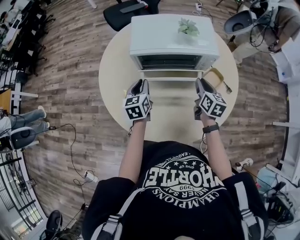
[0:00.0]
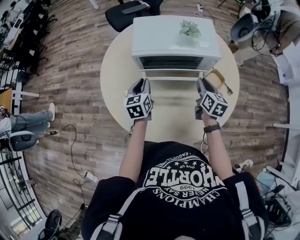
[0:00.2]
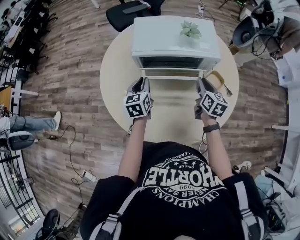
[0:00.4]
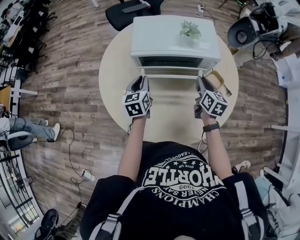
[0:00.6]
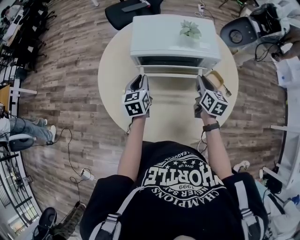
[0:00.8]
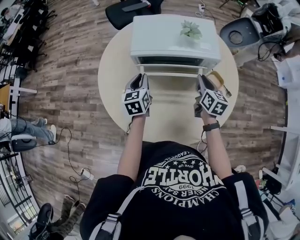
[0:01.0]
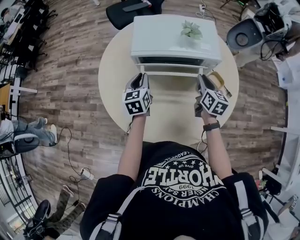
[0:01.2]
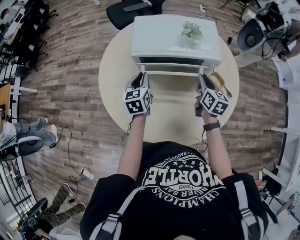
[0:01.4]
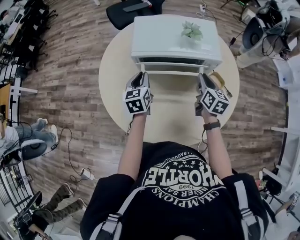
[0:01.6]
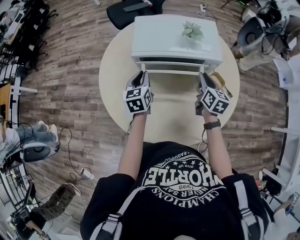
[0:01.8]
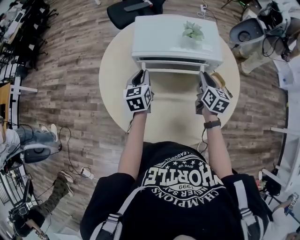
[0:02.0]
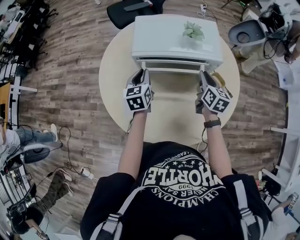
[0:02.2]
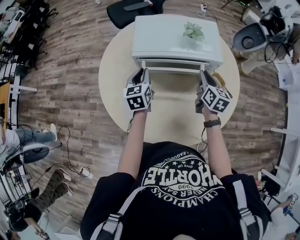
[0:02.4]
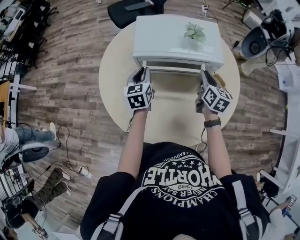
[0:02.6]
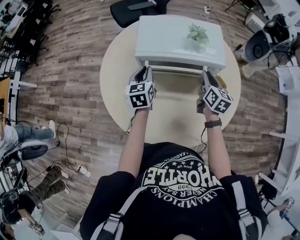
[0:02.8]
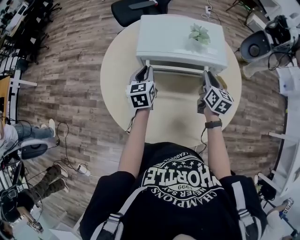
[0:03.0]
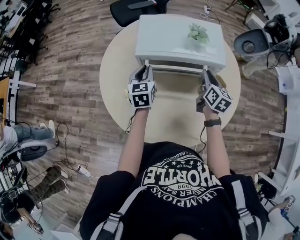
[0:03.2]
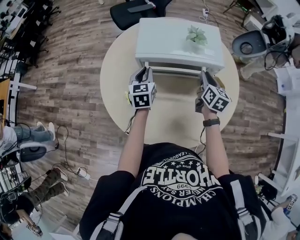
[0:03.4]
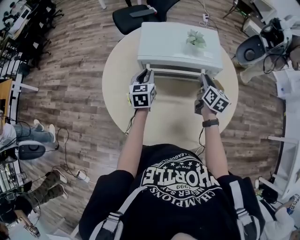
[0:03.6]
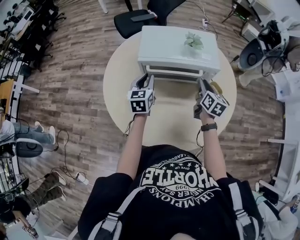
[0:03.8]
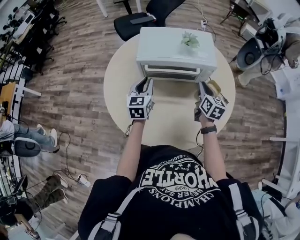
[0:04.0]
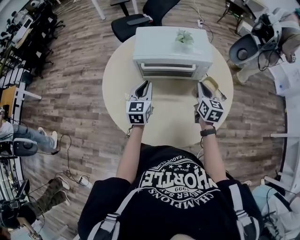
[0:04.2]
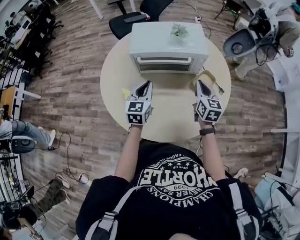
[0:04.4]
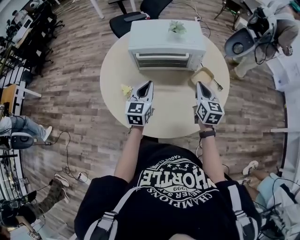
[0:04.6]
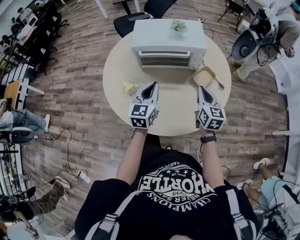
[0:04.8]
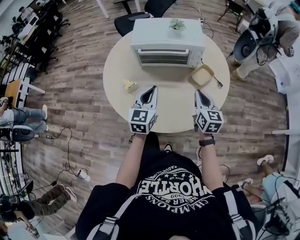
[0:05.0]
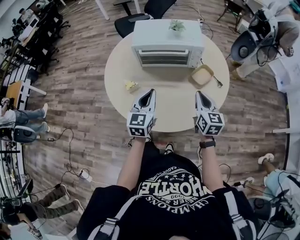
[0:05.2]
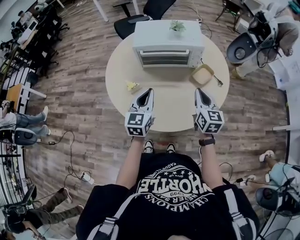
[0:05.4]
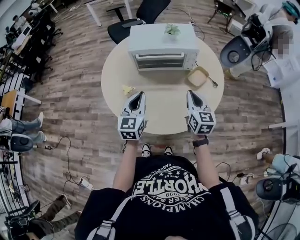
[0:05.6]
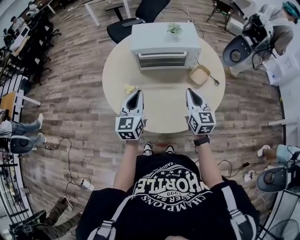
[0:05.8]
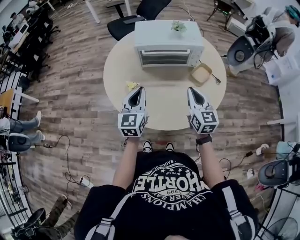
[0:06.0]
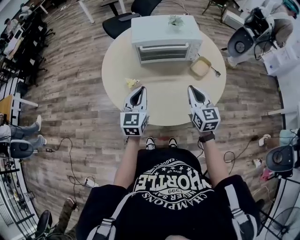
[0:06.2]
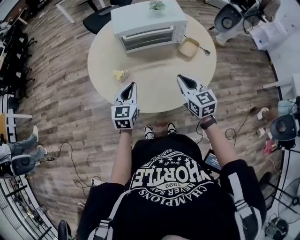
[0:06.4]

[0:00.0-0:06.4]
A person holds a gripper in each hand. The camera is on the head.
0:00.0 to 0:01.6: The grippers make only small movements.
0:01.6 to 0:03.2: There are only small adjustments of the grippers.
0:03.2 to 0:04.8: The left gripper heads backward and to the right, covering about 20 cm. Meanwhile the right gripper goes some 20 cm backward.
0:04.8 to 0:06.4: Both grippers move to the left and backward, roughly 15 cm.

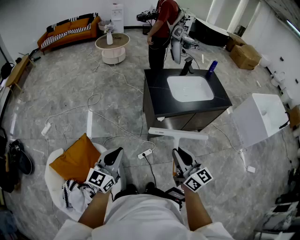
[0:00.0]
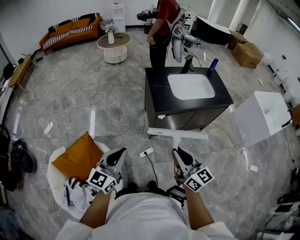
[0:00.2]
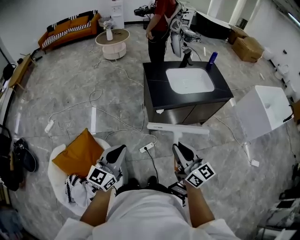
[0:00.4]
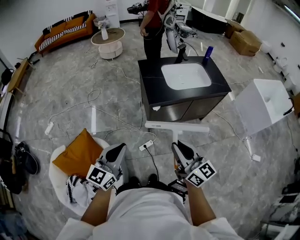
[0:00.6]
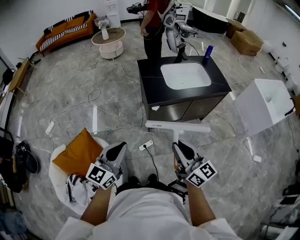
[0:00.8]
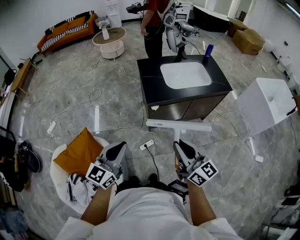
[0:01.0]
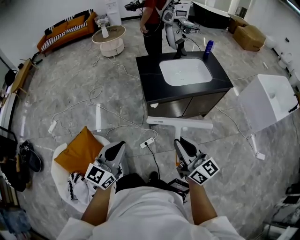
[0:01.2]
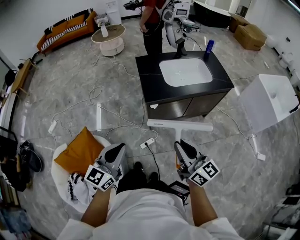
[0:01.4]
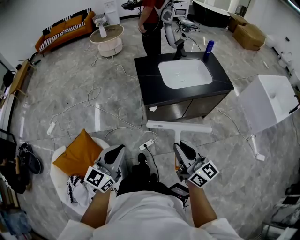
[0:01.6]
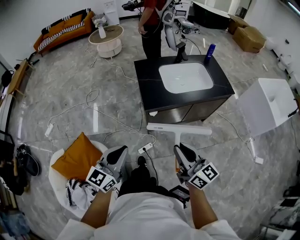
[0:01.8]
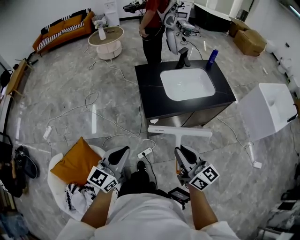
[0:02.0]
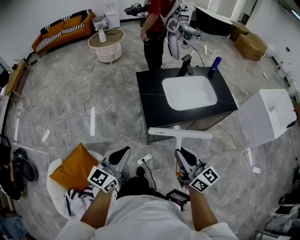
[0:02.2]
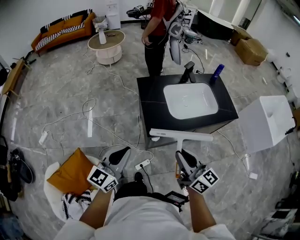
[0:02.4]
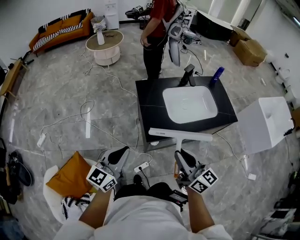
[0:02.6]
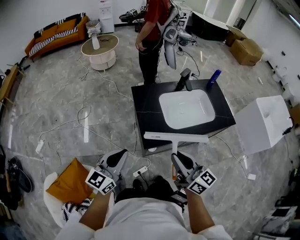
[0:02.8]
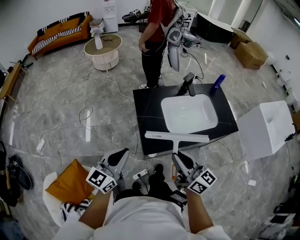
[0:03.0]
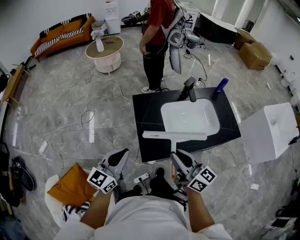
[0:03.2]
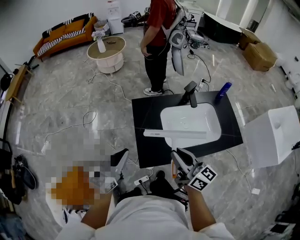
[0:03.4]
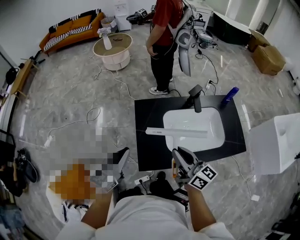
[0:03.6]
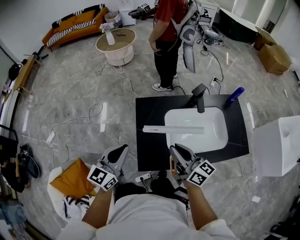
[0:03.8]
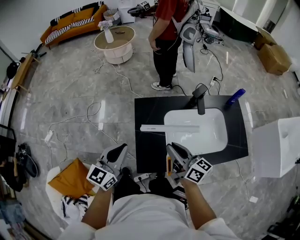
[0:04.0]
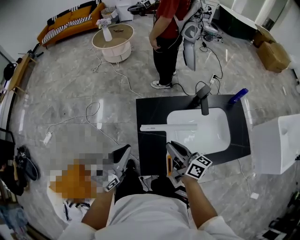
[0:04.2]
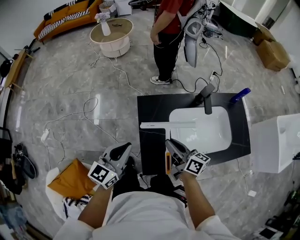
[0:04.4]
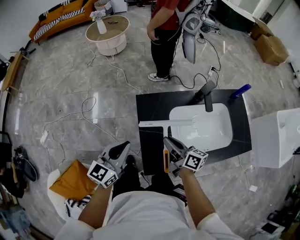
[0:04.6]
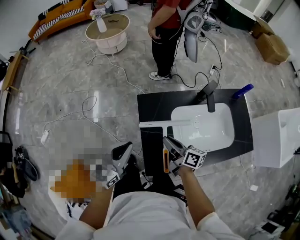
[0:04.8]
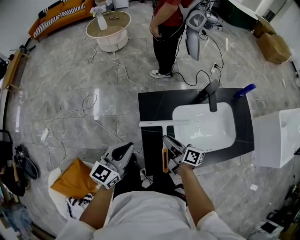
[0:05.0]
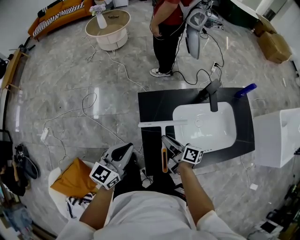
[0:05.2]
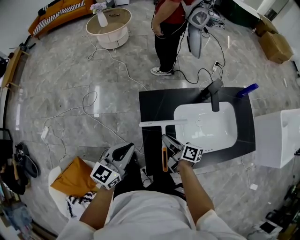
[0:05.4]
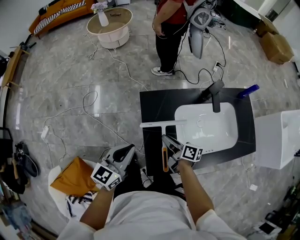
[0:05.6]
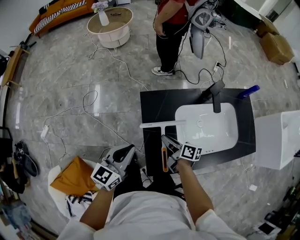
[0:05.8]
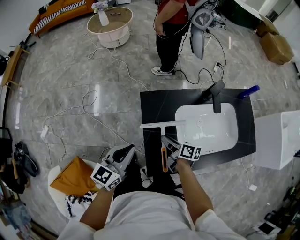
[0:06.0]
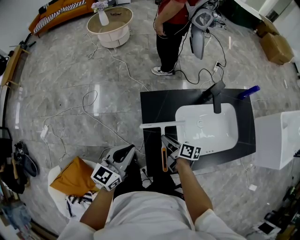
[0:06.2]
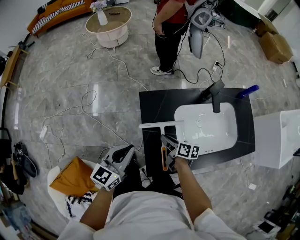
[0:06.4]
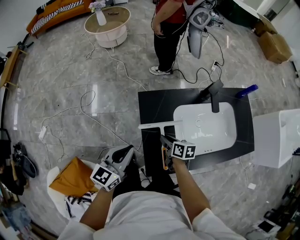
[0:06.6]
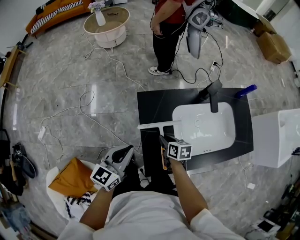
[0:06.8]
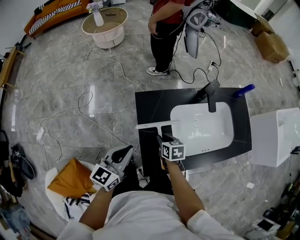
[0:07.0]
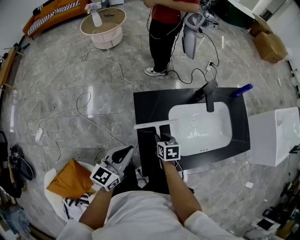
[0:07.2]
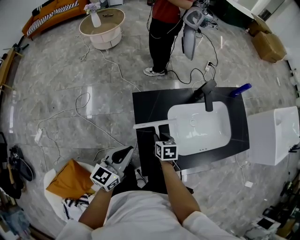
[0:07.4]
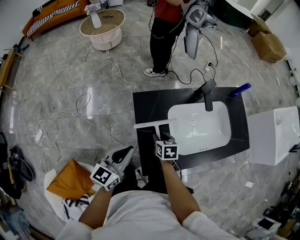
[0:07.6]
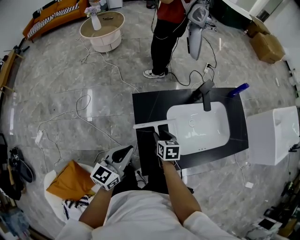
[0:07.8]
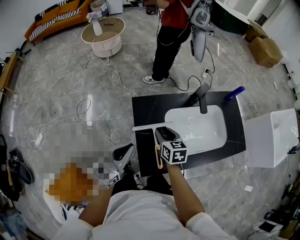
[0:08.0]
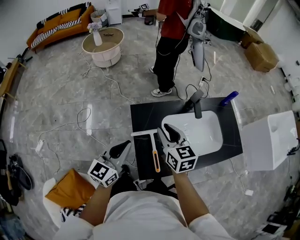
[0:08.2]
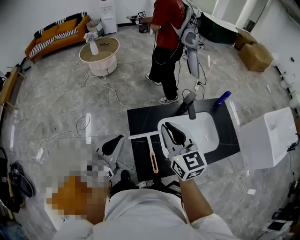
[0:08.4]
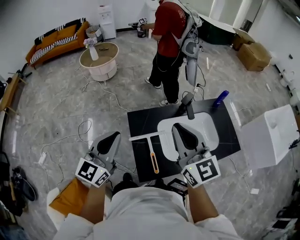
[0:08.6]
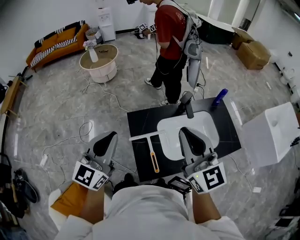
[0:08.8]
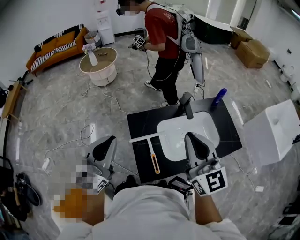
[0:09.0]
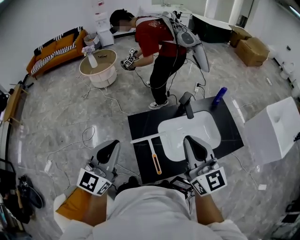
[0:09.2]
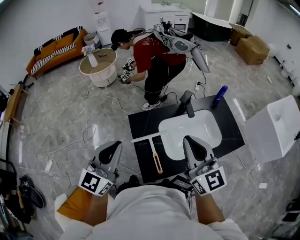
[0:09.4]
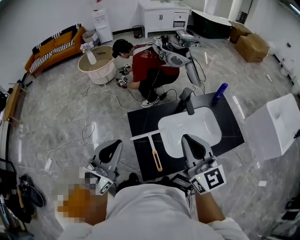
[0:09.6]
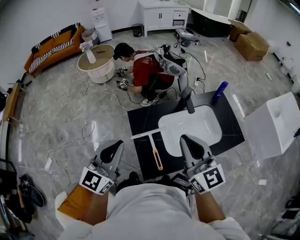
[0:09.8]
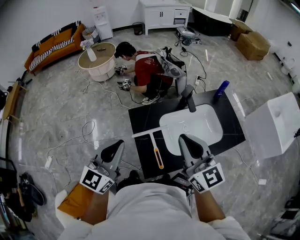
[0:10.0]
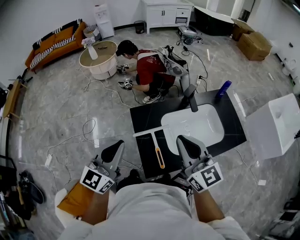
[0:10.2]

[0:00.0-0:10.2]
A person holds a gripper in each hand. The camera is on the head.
0:00.0 to 0:01.4: Both grippers travel together to the right, approximately 10 cm.
0:01.4 to 0:03.0: Both grippers move forward, approximately 30 cm.
0:03.0 to 0:04.4: The right gripper heads forward and downward, covering some 25 cm, and changes its angle by about 30 degrees. Meanwhile the left gripper moves forward, roughly 20 cm.
0:04.4 to 0:05.8: The right gripper goes approximately 15 cm downward, and swivels roughly 20 degrees.
0:05.8 to 0:07.2: The right gripper angles its fingers downward, by roughly 30 degrees.
0:07.2 to 0:08.8: The right gripper moves upward, roughly 40 cm, and angles its fingers upward, by about 60 degrees, while the left gripper heads upward, covering some 25 cm, and swivels roughly 30 degrees.
0:08.8 to 0:10.2: Both grippers move downward, some 5 cm.

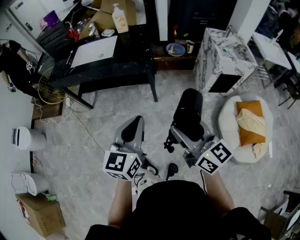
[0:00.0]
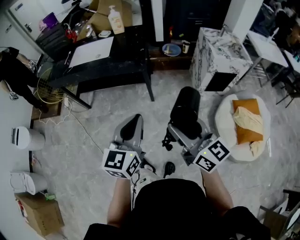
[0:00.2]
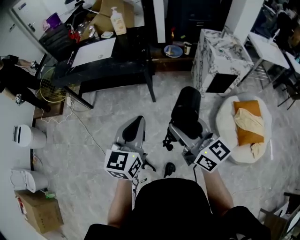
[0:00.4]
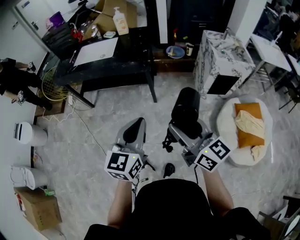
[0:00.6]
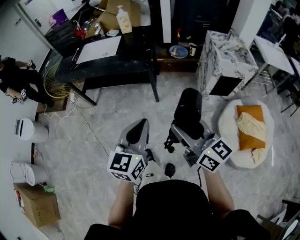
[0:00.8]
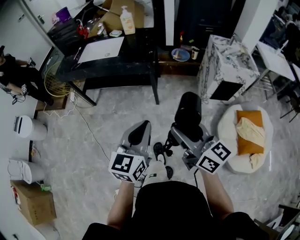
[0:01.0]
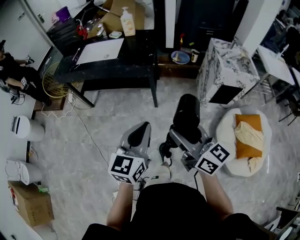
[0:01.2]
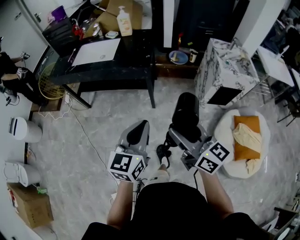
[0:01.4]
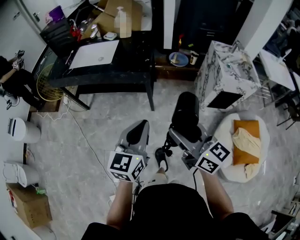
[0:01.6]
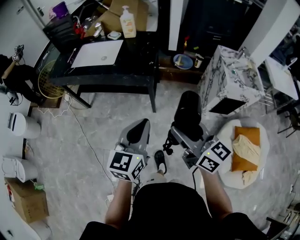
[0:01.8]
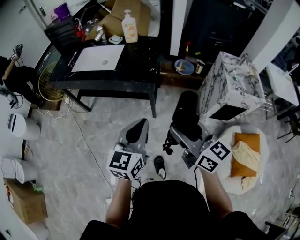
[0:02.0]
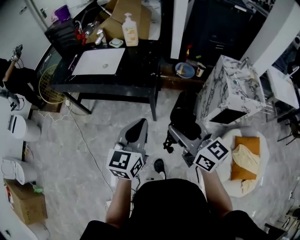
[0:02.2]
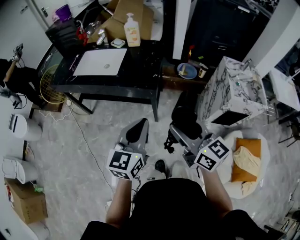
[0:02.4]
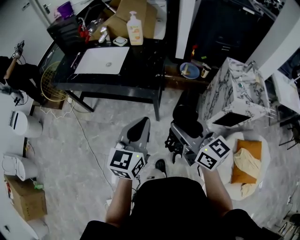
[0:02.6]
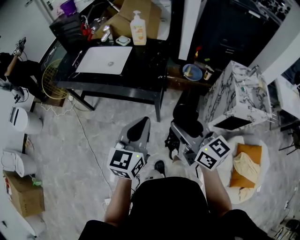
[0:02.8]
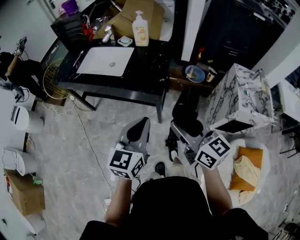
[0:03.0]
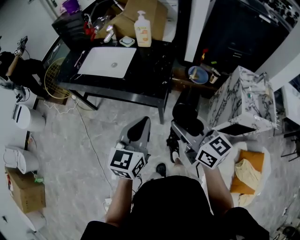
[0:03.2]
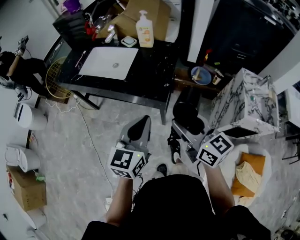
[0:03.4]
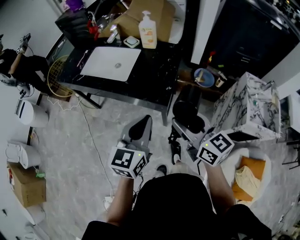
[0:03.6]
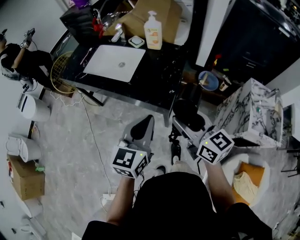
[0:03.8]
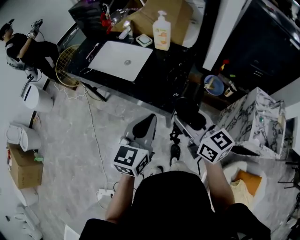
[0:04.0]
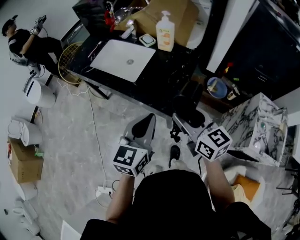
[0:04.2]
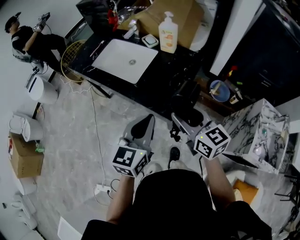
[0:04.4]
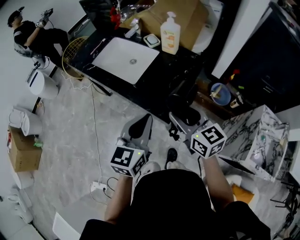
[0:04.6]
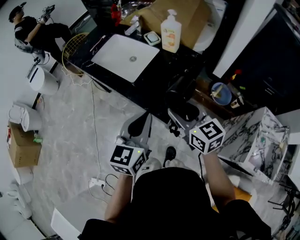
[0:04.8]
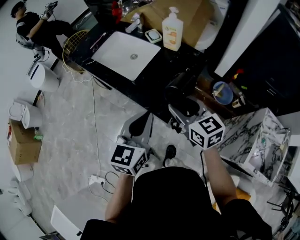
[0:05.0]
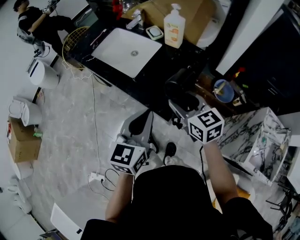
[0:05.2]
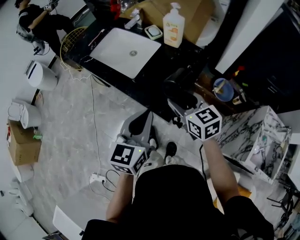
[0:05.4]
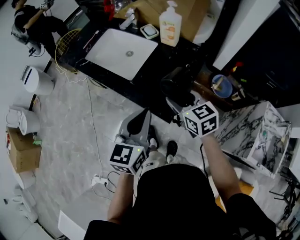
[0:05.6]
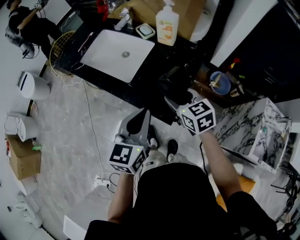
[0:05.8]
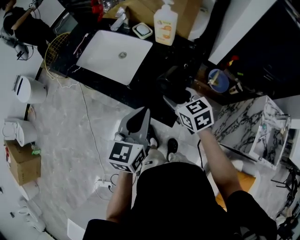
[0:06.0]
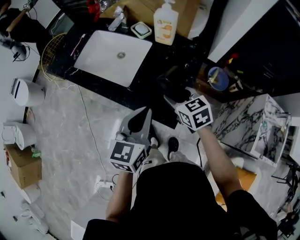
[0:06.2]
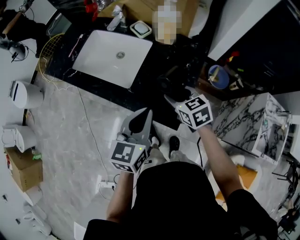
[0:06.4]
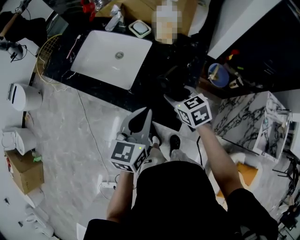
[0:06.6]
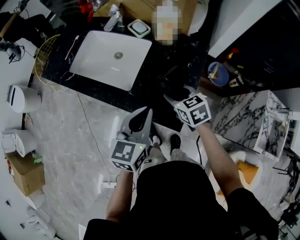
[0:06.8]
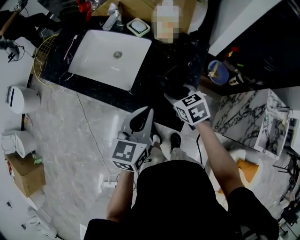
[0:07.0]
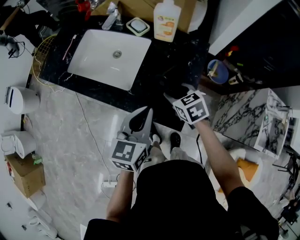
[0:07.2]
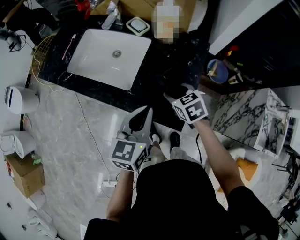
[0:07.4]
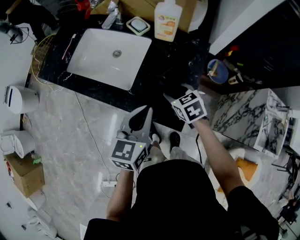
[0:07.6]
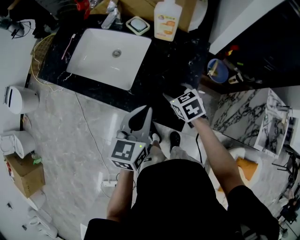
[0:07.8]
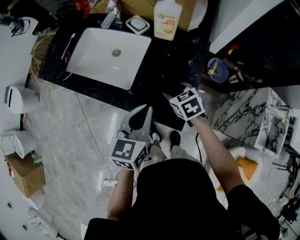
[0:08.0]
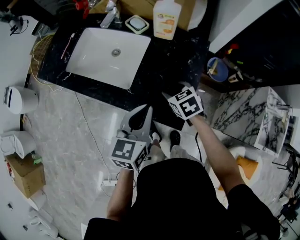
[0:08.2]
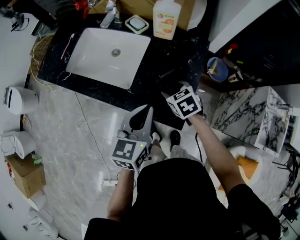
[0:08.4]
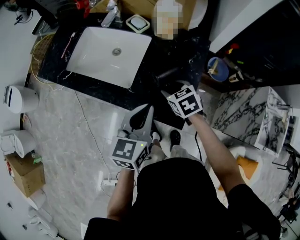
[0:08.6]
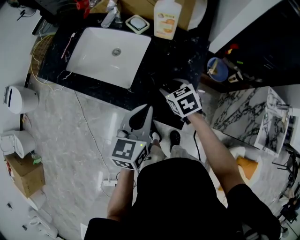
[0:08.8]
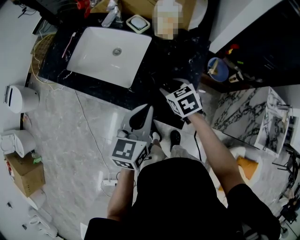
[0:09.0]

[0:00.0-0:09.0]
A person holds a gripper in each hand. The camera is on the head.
0:00.0 to 0:01.6: The right gripper heads forward and to the right, covering roughly 10 cm, while the left gripper is displaced to the right and forward by some 10 cm.
0:01.6 to 0:03.0: Both grippers travel together forward, about 20 cm.
0:03.0 to 0:04.4: The grippers both shift forward by about 20 cm.
0:04.4 to 0:06.0: The left gripper shifts roughly 10 cm forward. The right gripper moves forward and downward, about 20 cm, and rotates some 20 degrees.
0:06.0 to 0:07.6: The left gripper heads forward, covering approximately 5 cm. The right gripper heads downward and forward, covering about 10 cm.
0:07.6 to 0:09.0: The grippers move only a little.
